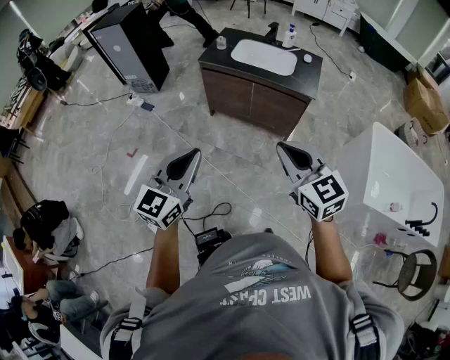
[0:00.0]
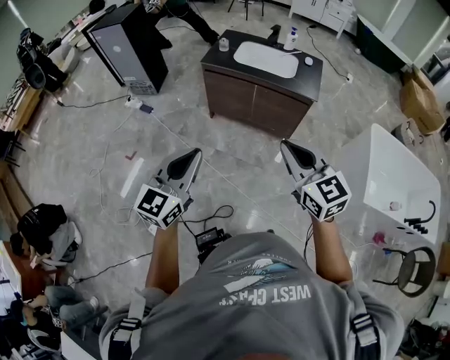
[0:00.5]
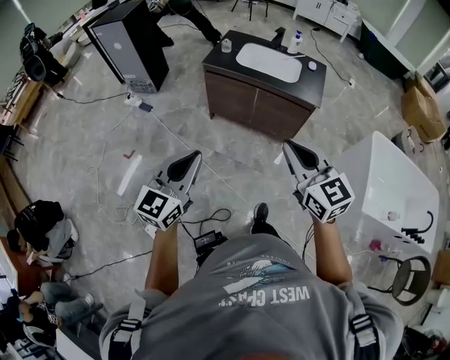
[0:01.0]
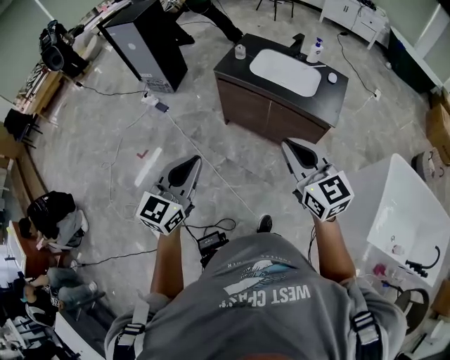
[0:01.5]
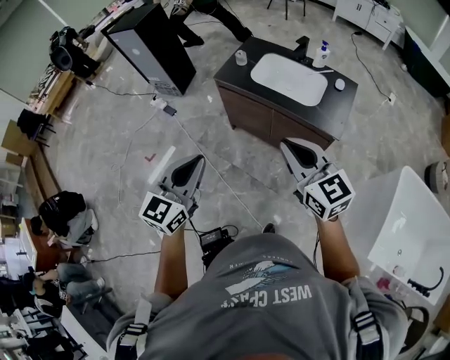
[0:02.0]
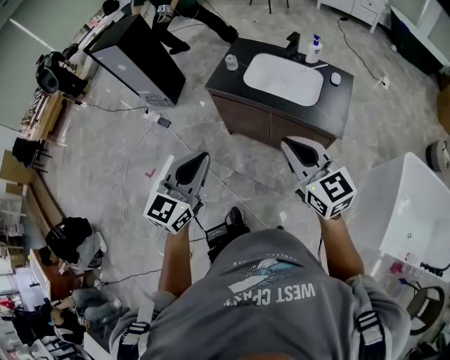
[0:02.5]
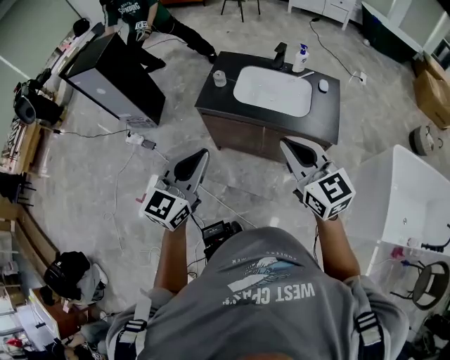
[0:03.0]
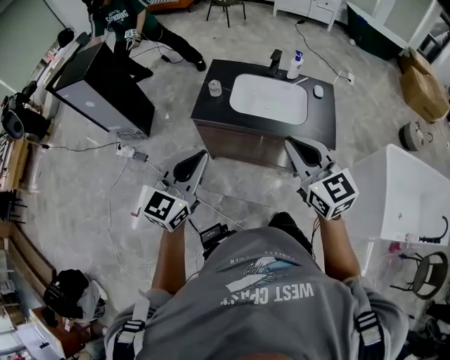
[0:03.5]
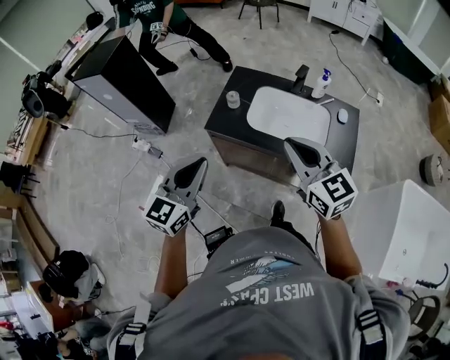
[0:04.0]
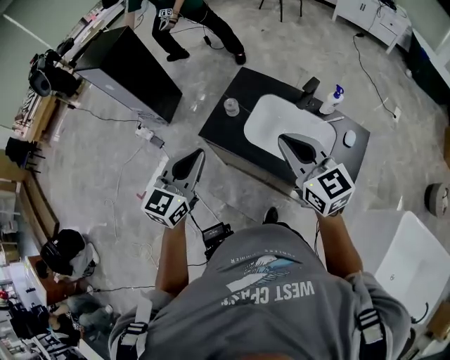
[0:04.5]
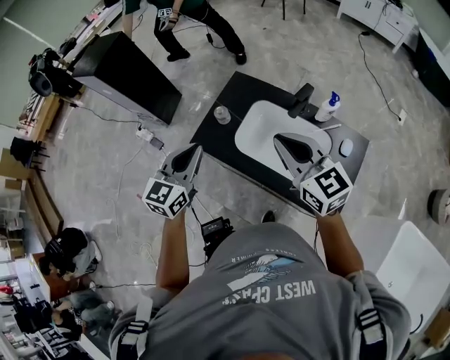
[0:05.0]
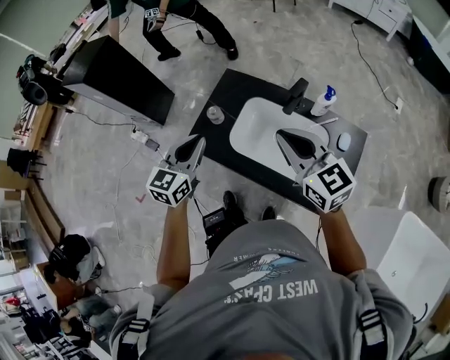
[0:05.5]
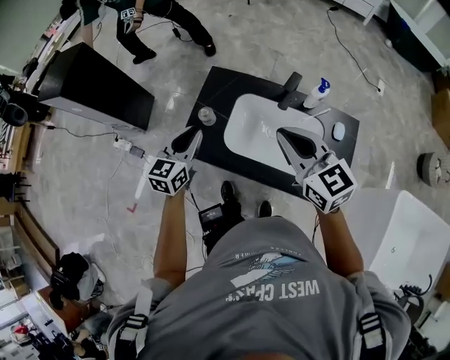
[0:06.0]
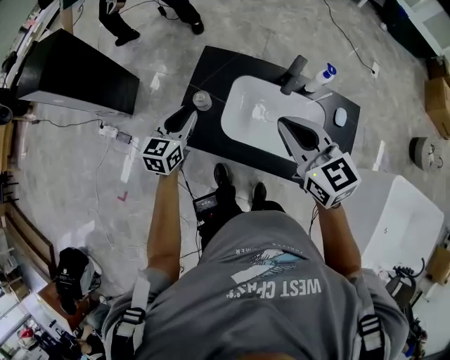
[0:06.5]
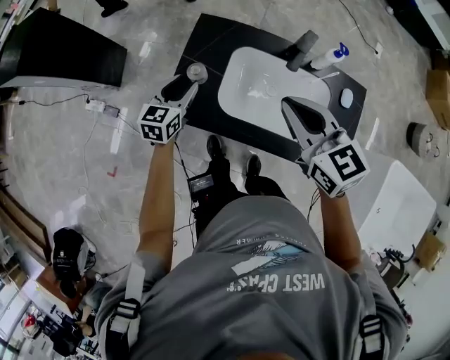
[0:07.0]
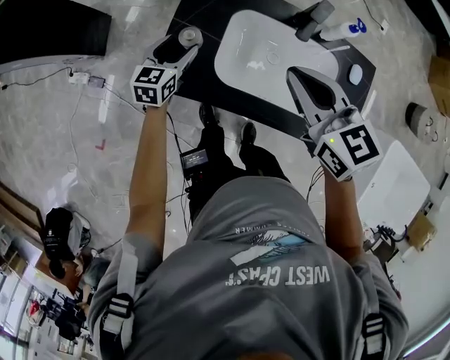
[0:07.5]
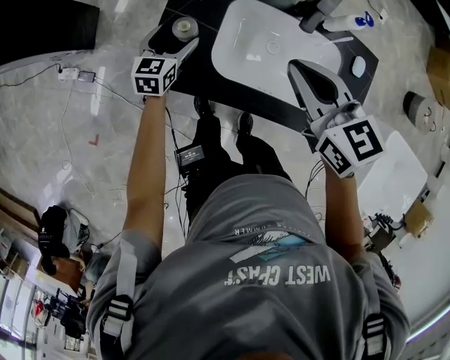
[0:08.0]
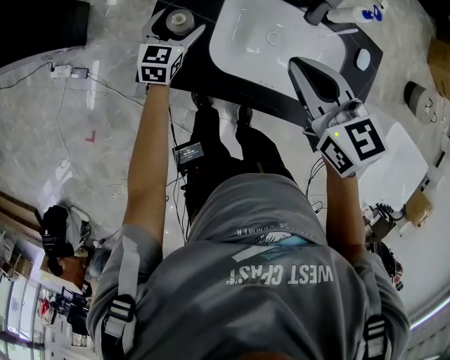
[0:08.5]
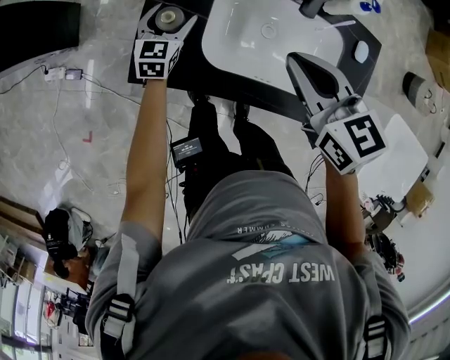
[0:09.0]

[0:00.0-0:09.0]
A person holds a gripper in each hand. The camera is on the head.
0:00.0 to 0:02.0: The two grippers go some 20 cm forward.
0:02.0 to 0:04.5: Both grippers move forward, approximately 40 cm.
0:04.5 to 0:07.0: The left gripper goes roughly 35 cm forward and downward, rotates approximately 20 degrees, and opens up; the right gripper travels forward and downward by roughly 15 cm.
0:07.0 to 0:09.0: The left gripper shifts roughly 15 cm downward and forward, and opens up. The right gripper travels downward by about 10 cm.

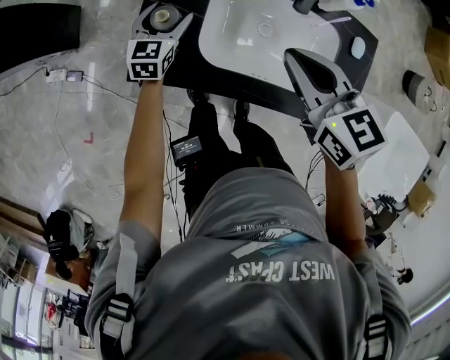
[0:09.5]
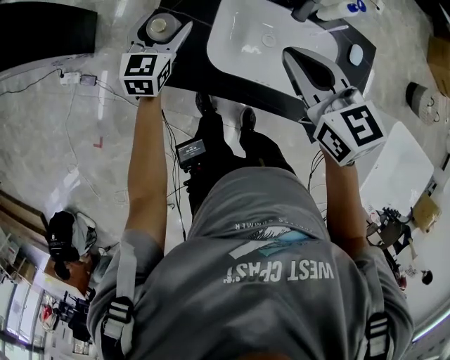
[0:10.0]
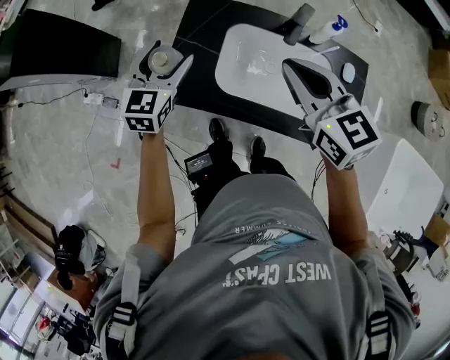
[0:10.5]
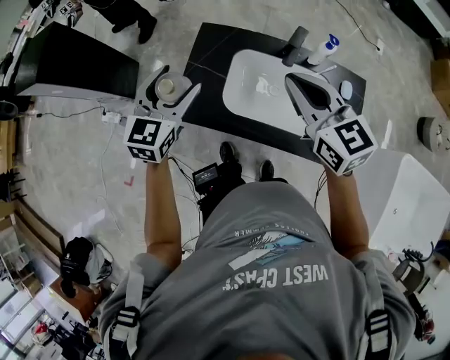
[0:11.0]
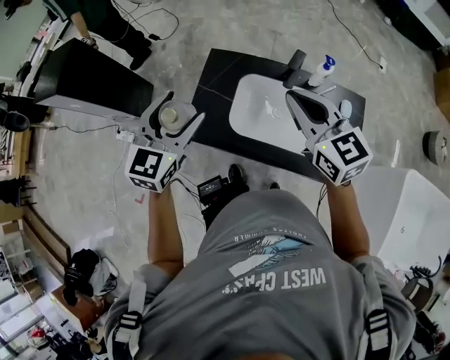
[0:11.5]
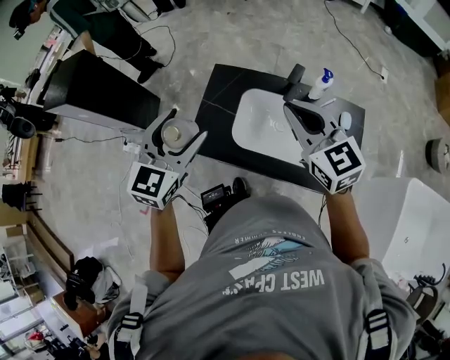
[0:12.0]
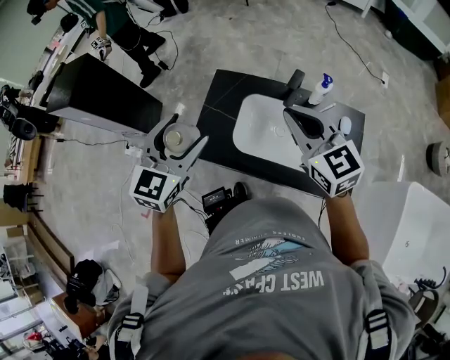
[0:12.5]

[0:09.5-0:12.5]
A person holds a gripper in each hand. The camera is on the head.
0:09.5 to 0:11.0: The right gripper travels upward by about 10 cm, while the left gripper shifts about 30 cm upward and backward.
0:11.0 to 0:12.5: The left gripper goes roughly 10 cm upward and backward.

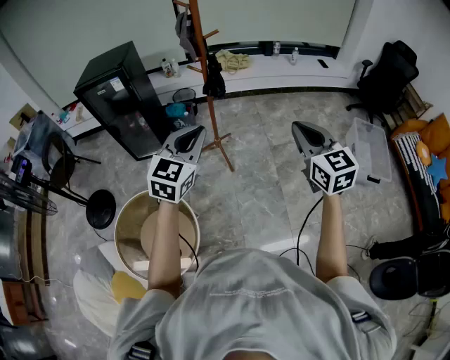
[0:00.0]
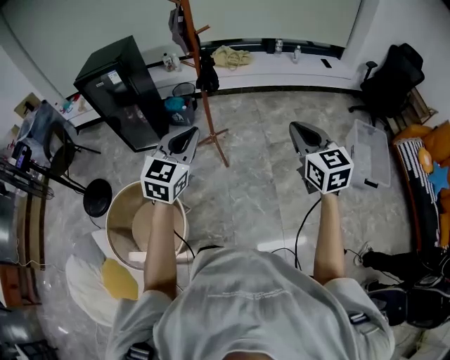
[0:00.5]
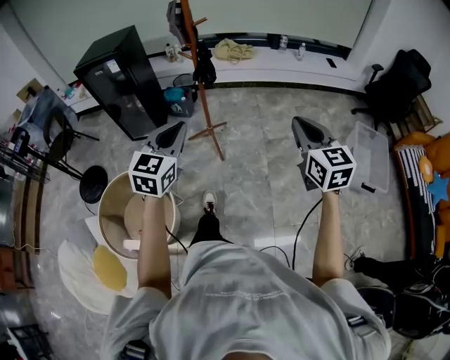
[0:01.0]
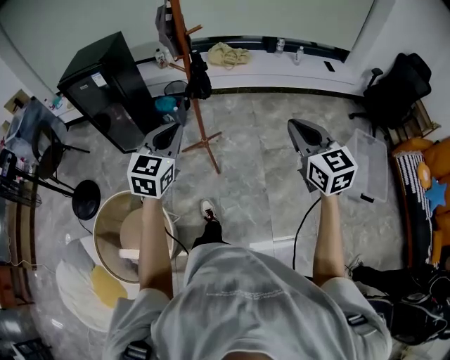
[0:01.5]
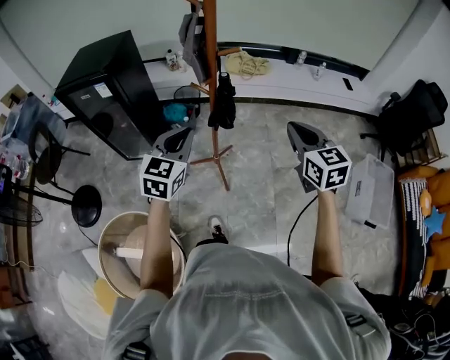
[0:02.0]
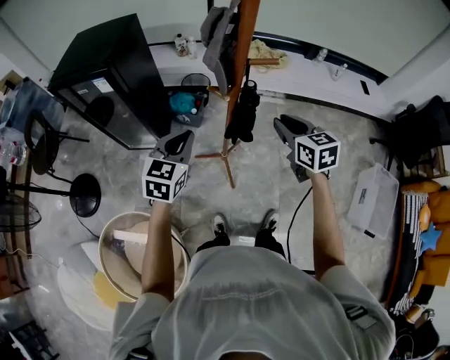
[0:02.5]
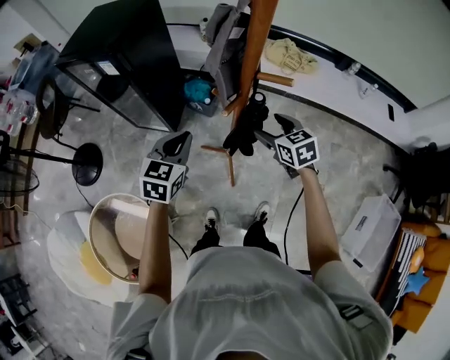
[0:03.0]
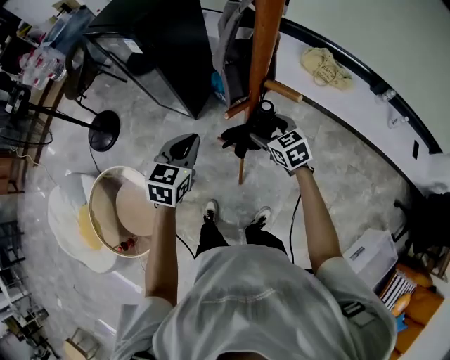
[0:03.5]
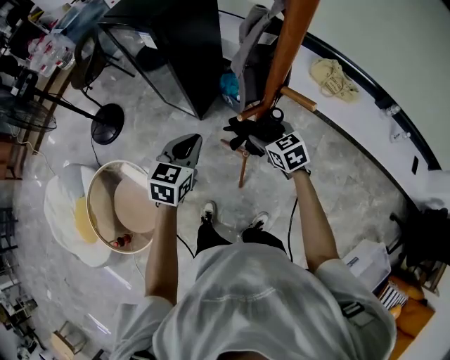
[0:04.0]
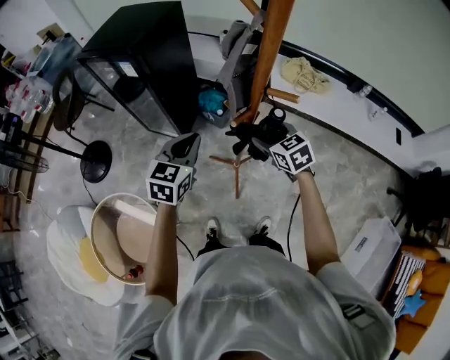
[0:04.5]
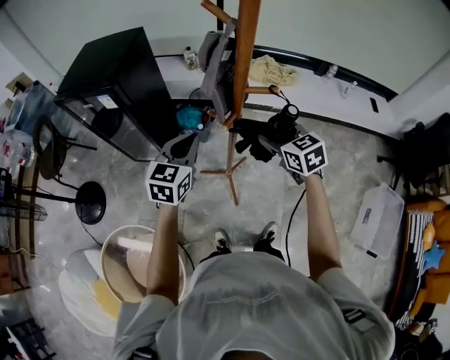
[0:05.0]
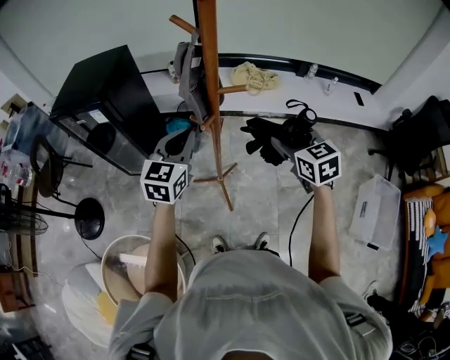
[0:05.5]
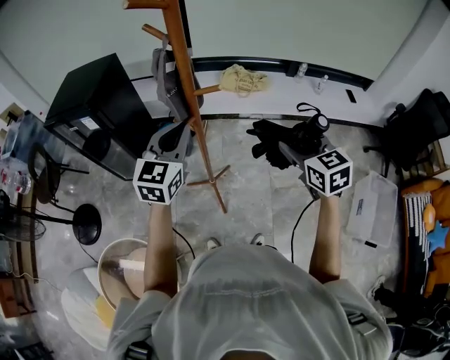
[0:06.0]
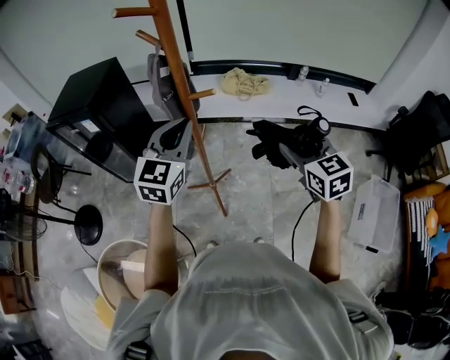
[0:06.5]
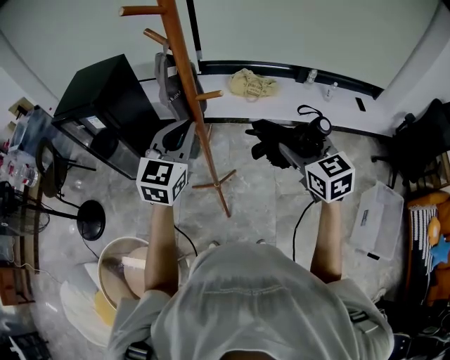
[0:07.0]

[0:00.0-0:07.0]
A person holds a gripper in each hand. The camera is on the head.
0:00.0 to 0:02.0: The grippers both shift forward by some 30 cm.
0:02.0 to 0:03.5: The right gripper moves some 40 cm, rotates about 50 degrees, and opens its fingers. Meanwhile the left gripper moves about 15 cm, and swivels roughly 30 degrees.
0:03.5 to 0:05.0: The left gripper heads upward, covering roughly 5 cm, and changes its angle by some 20 degrees. Meanwhile the right gripper goes some 15 cm upward, and swivels some 20 degrees.
0:05.0 to 0:07.0: The right gripper shifts approximately 20 cm to the right, upward and backward, while the left gripper shifts roughly 15 cm upward and to the right.

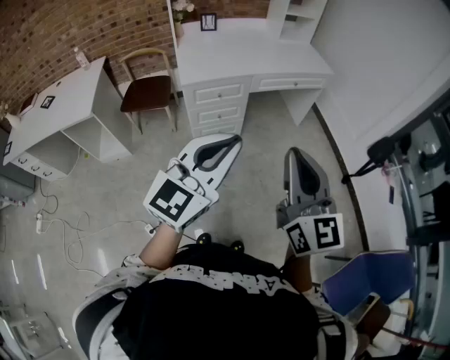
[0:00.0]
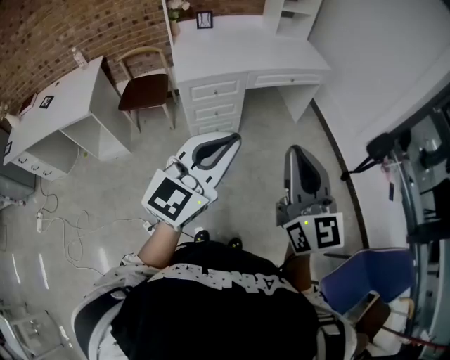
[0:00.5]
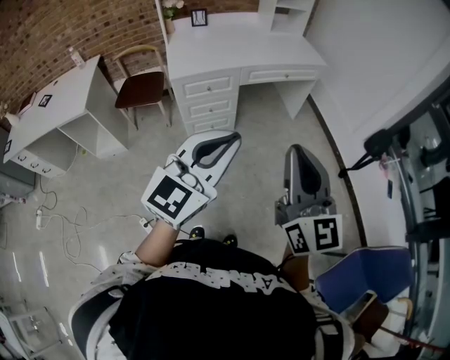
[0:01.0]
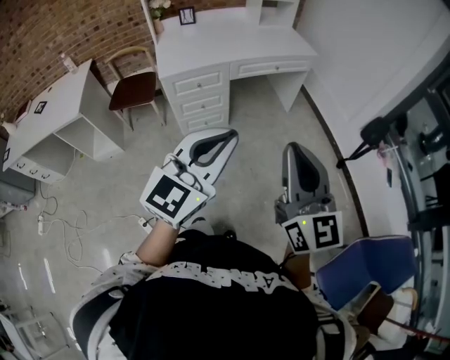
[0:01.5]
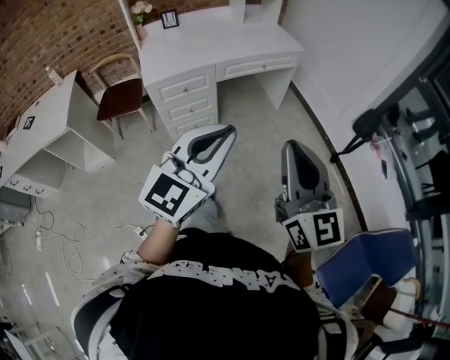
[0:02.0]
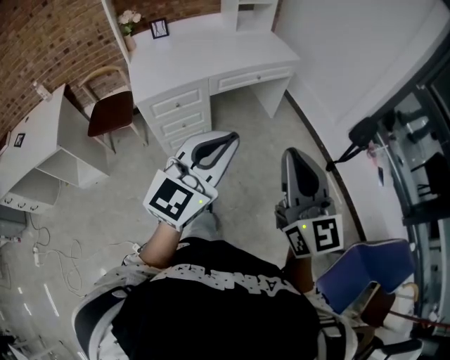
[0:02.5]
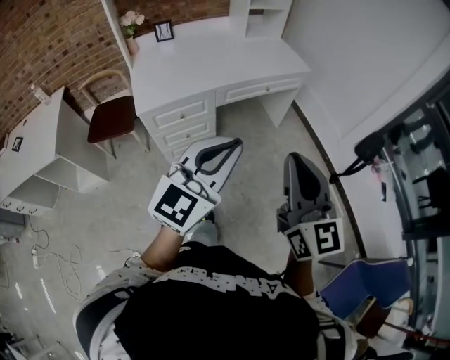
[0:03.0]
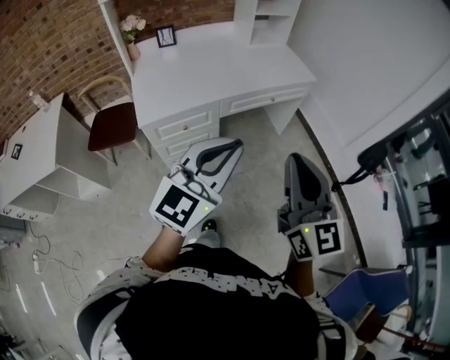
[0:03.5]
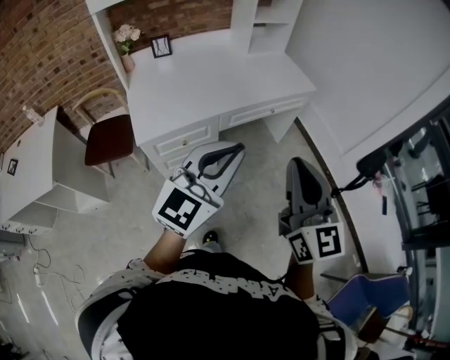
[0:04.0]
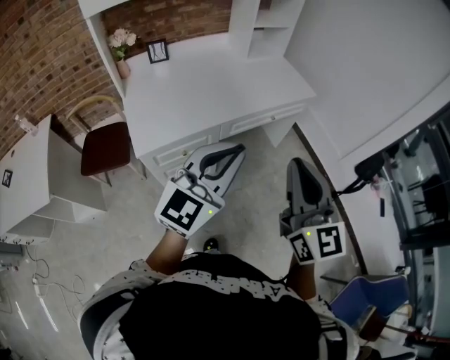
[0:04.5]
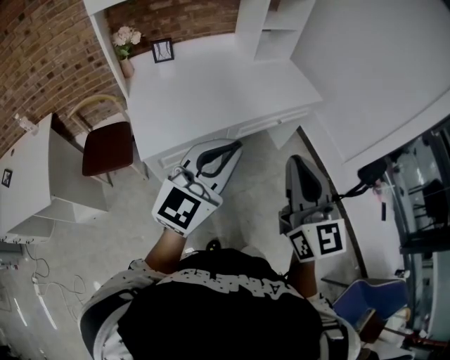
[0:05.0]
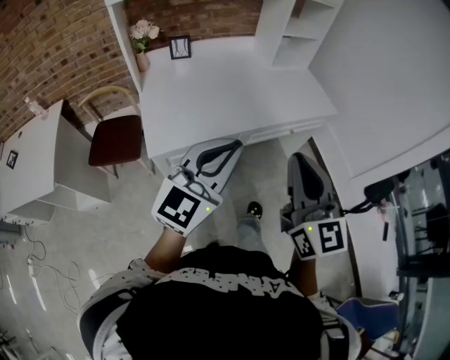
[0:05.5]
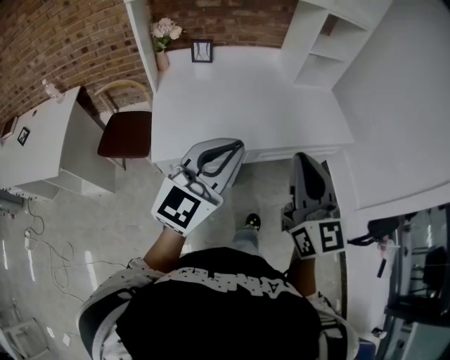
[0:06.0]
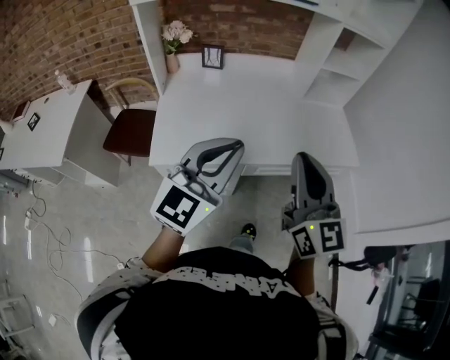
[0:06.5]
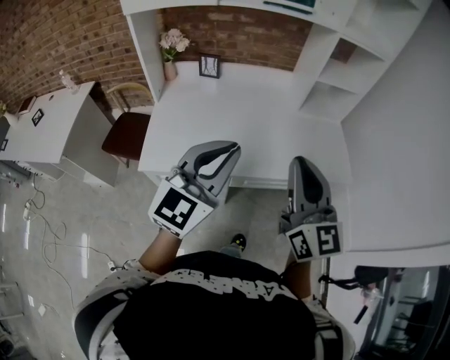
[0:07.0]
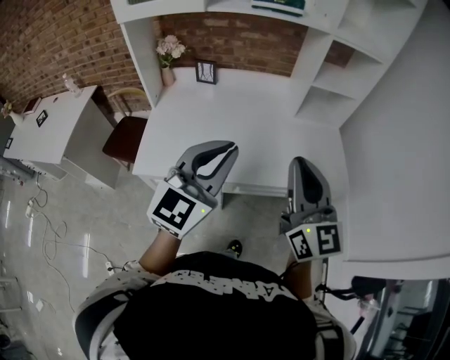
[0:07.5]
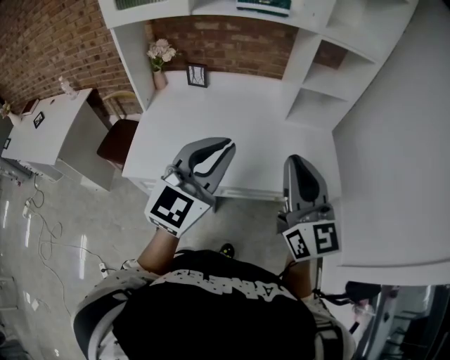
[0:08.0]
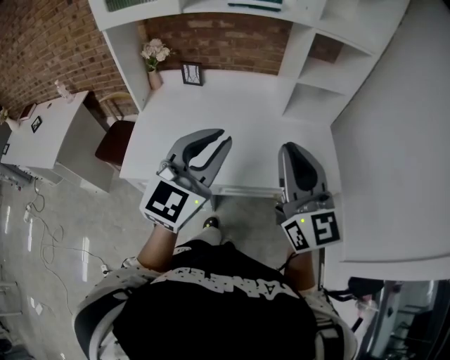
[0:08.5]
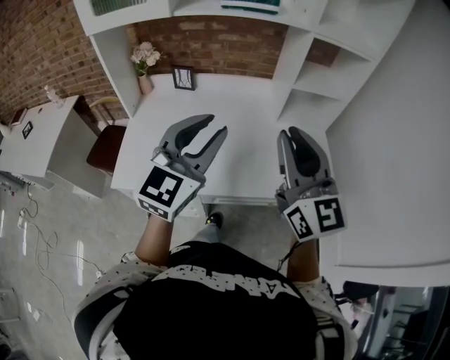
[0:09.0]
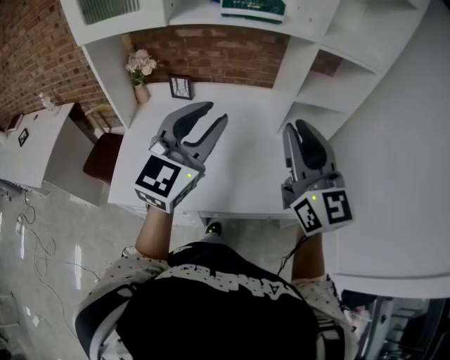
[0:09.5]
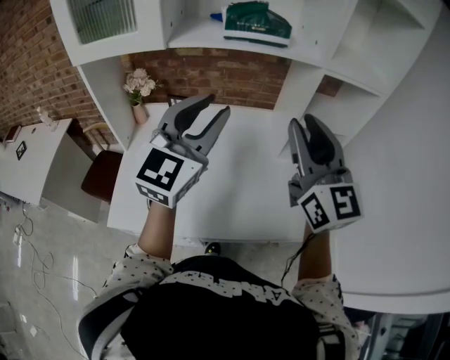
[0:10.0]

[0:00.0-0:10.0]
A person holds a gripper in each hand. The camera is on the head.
0:00.0 to 0:02.0: Both grippers travel together to the right, roughly 10 cm.
0:02.0 to 0:04.0: The grippers both shift forward and to the left by roughly 30 cm.
0:04.0 to 0:06.0: The grippers both shift forward and to the left by some 20 cm.
0:06.0 to 0:08.0: The left gripper shifts some 20 cm to the right and forward. The right gripper heads forward and to the right, covering approximately 20 cm.
0:08.0 to 0:10.0: The grippers both shift forward by roughly 20 cm. The left gripper opens its fingers. The right gripper opens up.
